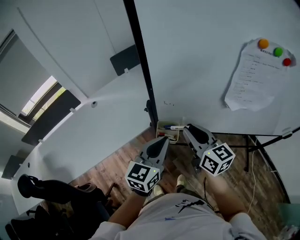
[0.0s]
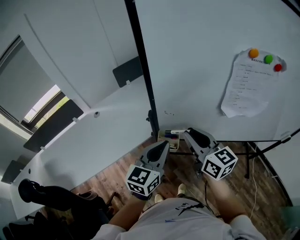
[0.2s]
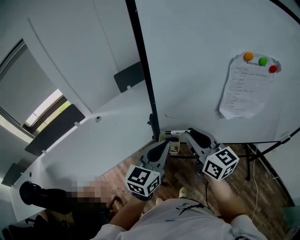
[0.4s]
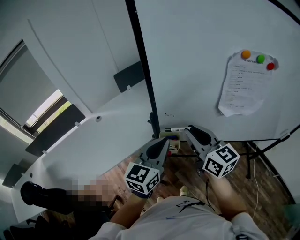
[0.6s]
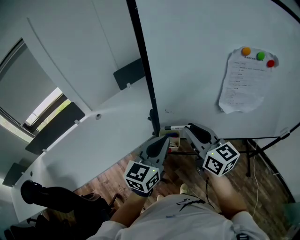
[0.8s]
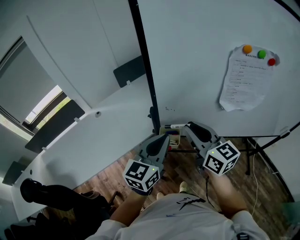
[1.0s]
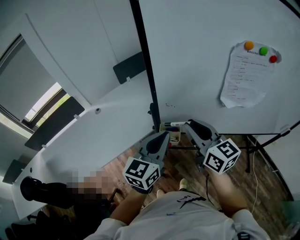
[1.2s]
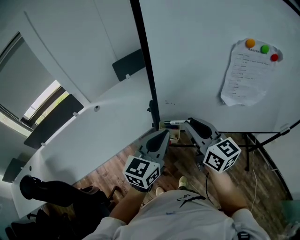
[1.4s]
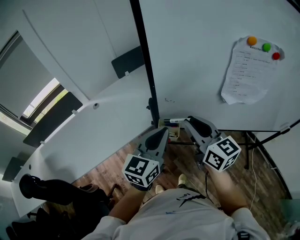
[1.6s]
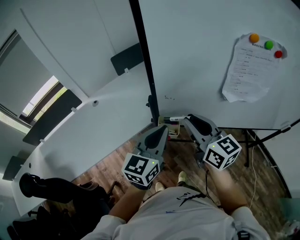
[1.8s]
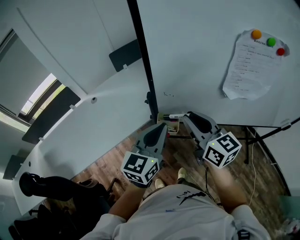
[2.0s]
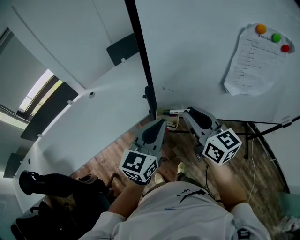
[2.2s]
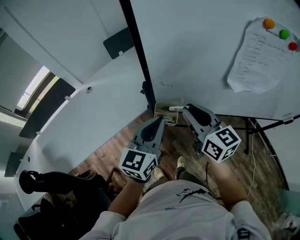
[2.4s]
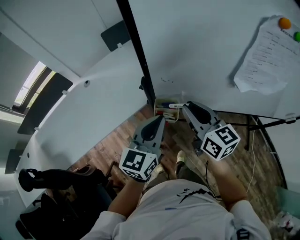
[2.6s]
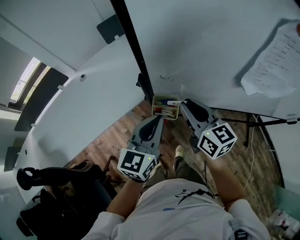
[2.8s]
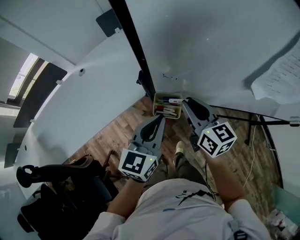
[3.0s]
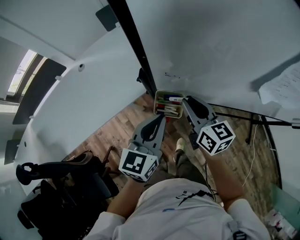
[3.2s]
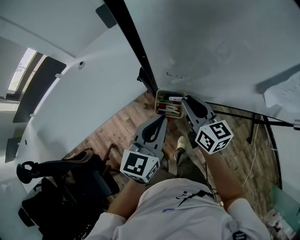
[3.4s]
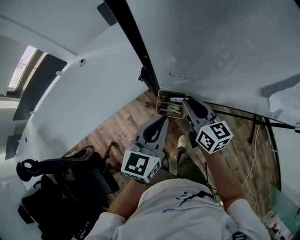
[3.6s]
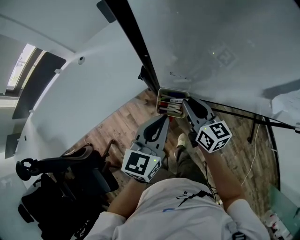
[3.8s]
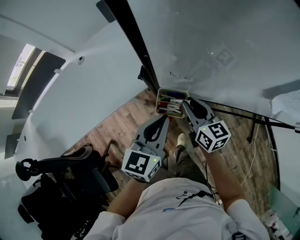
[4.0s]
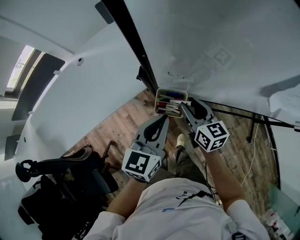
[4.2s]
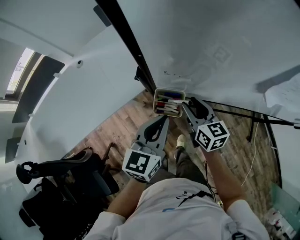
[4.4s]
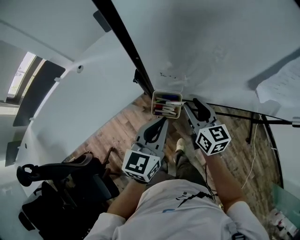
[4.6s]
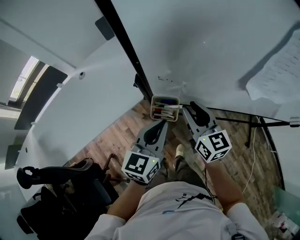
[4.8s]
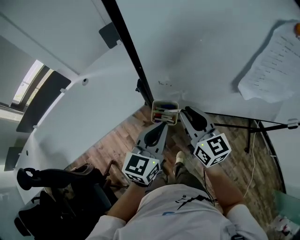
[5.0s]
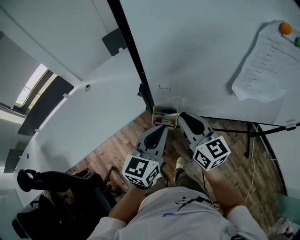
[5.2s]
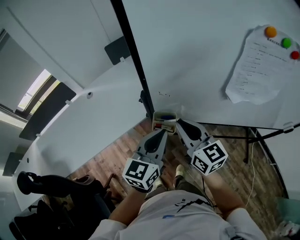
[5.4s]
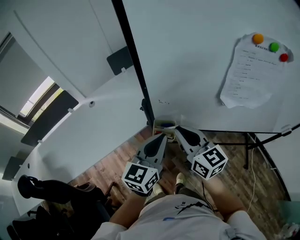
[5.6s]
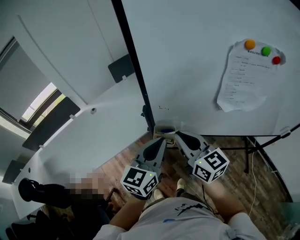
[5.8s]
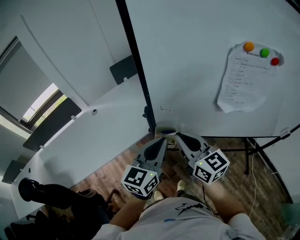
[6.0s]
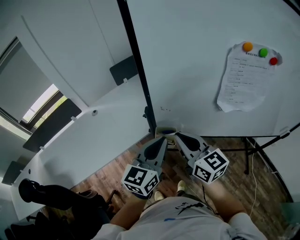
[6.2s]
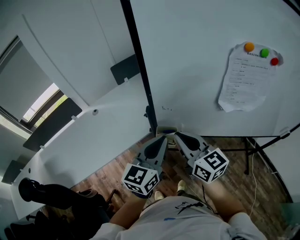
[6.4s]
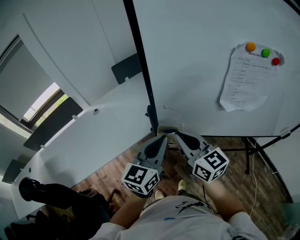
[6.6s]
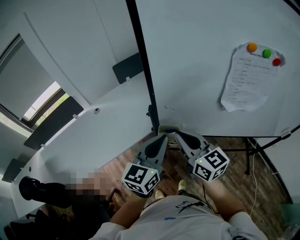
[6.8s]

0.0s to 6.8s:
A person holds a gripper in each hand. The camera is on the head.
0.0s to 1.4s: Both grippers travel together upward, some 5 cm.
1.4s to 2.8s: The right gripper is displaced downward and forward by some 15 cm; the left gripper goes roughly 10 cm downward.
2.8s to 4.0s: The left gripper is displaced downward by some 5 cm, while the right gripper heads downward, covering about 15 cm.
4.0s to 5.4s: The right gripper heads upward, covering approximately 20 cm, while the left gripper moves upward, roughly 10 cm.
5.4s to 6.8s: Both grippers move upward, about 5 cm.

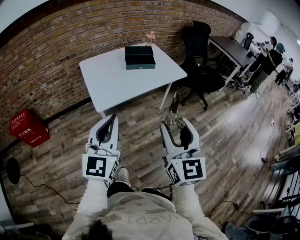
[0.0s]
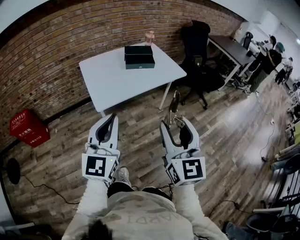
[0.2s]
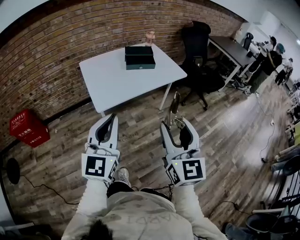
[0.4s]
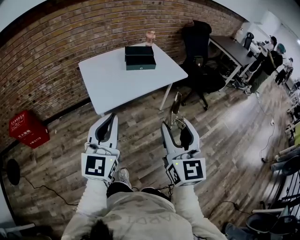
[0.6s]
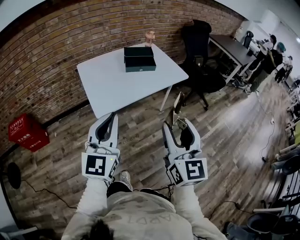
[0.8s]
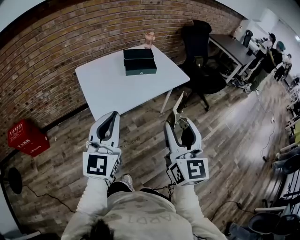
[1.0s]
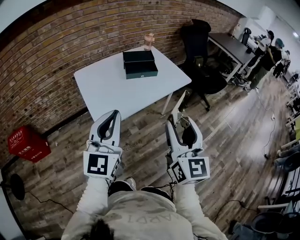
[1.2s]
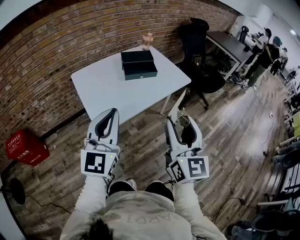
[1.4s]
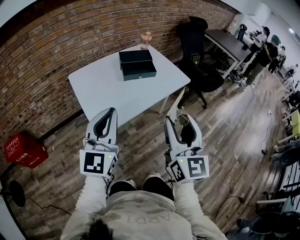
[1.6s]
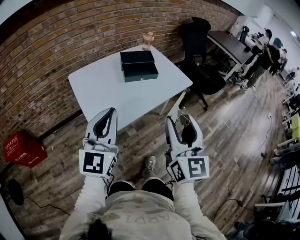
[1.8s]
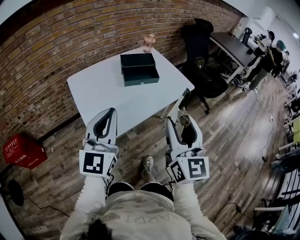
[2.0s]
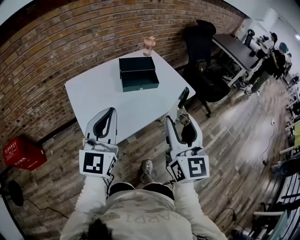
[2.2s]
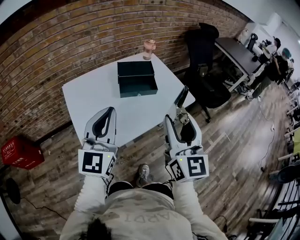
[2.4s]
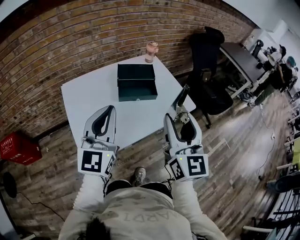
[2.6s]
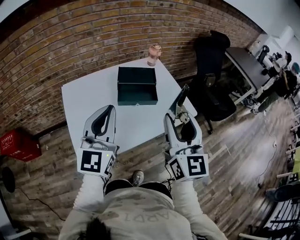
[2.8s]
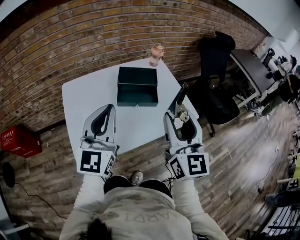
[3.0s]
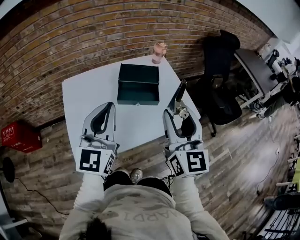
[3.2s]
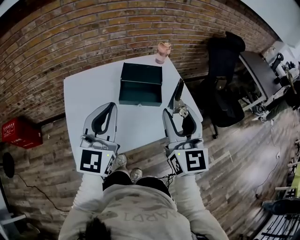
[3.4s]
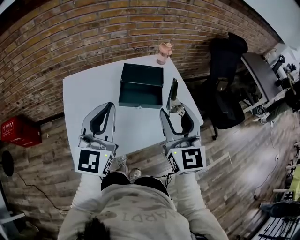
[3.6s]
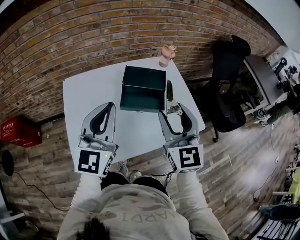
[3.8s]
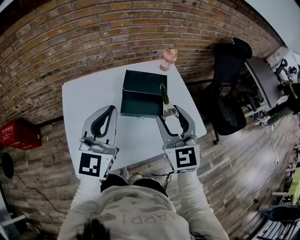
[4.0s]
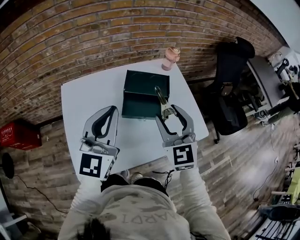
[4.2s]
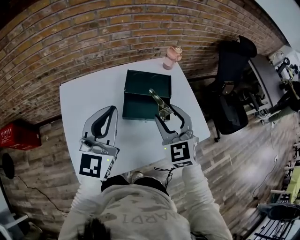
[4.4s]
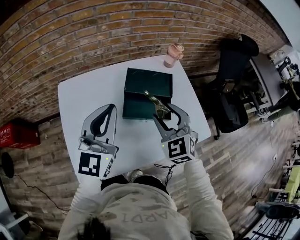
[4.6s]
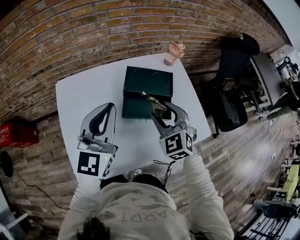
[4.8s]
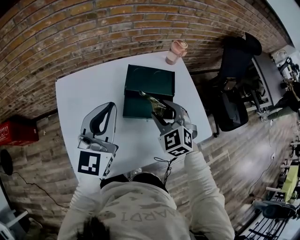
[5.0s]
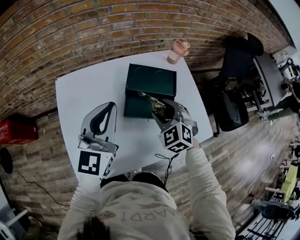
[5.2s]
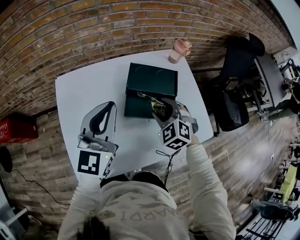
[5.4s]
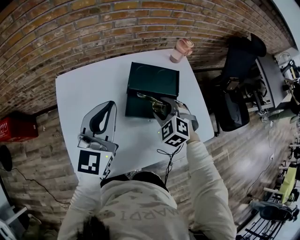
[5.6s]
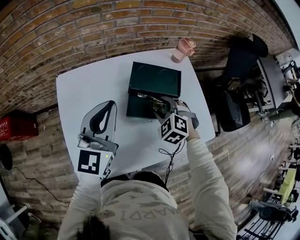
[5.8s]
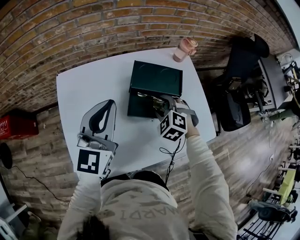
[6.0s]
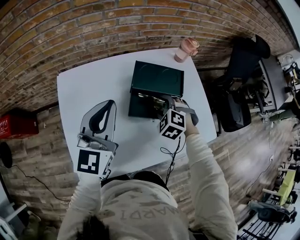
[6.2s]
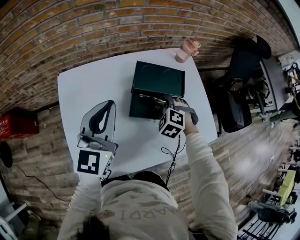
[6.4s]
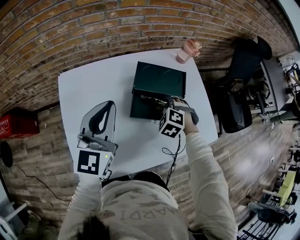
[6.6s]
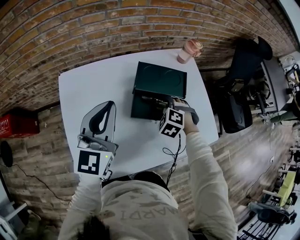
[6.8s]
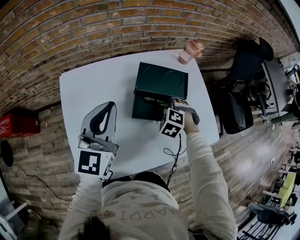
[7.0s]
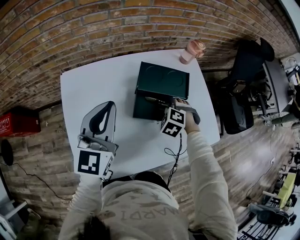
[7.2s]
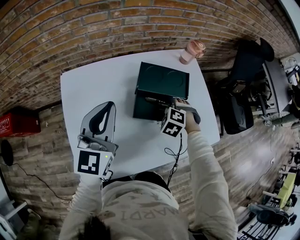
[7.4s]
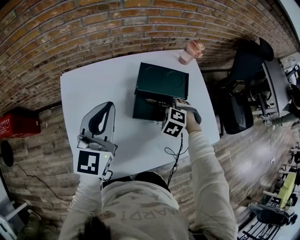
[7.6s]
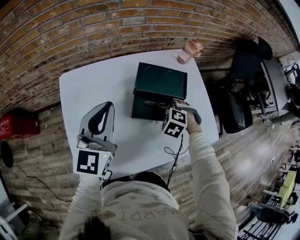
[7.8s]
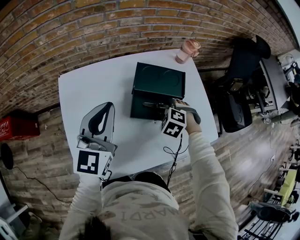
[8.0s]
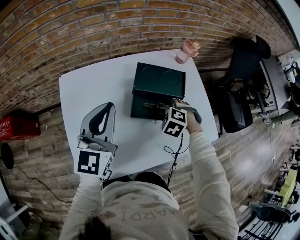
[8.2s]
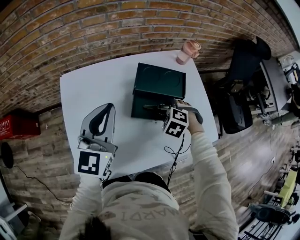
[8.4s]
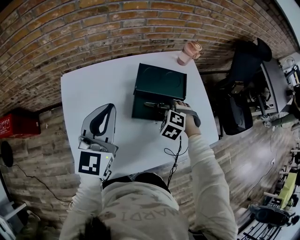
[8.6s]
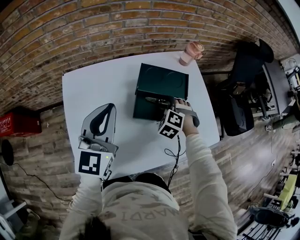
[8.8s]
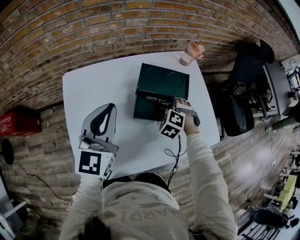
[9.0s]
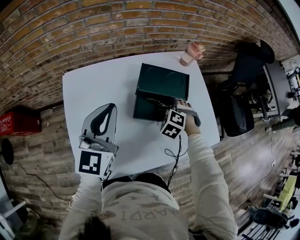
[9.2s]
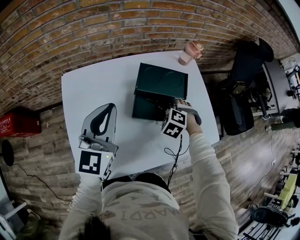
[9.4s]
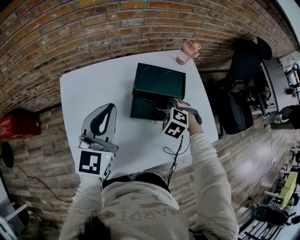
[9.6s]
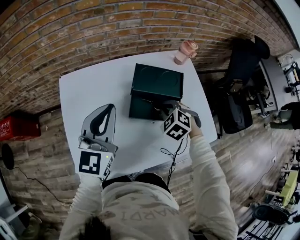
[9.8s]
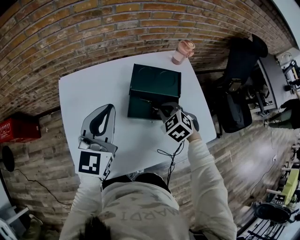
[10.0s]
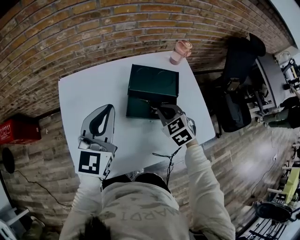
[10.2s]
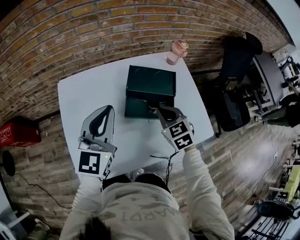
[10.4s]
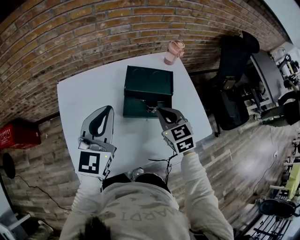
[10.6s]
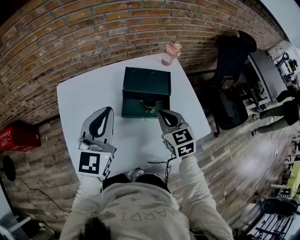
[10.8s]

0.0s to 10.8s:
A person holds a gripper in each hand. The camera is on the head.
0.0s to 1.6s: The two grippers go approximately 20 cm forward.
1.6s to 3.0s: The grippers both shift forward by roughly 30 cm.
3.0s to 4.6s: The left gripper is displaced forward by roughly 15 cm; the right gripper goes approximately 25 cm forward and downward, and tilts its fingers about 30 degrees downward.
4.6s to 6.2s: The right gripper moves downward and forward, roughly 20 cm, and points its fingers approximately 30 degrees further downward, while the left gripper changes place by approximately 5 cm.
6.2s to 9.2s: The grippers stay close to where they were, moving slightly.
9.2s to 10.8s: The left gripper ends up some 5 cm from where it was. The right gripper heads upward and backward, covering approximately 15 cm, angles its fingers upward, by some 40 degrees, and closes its fingers.

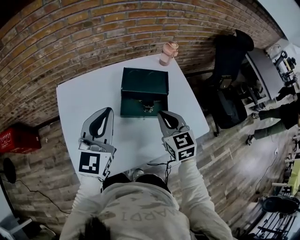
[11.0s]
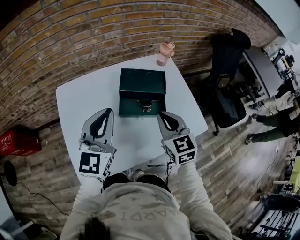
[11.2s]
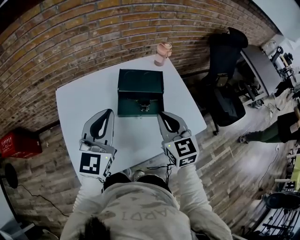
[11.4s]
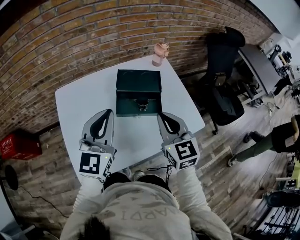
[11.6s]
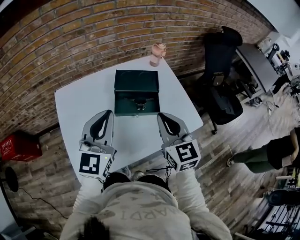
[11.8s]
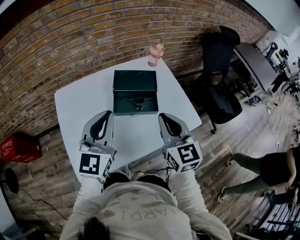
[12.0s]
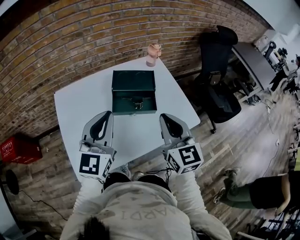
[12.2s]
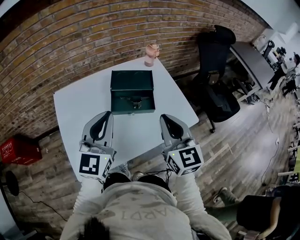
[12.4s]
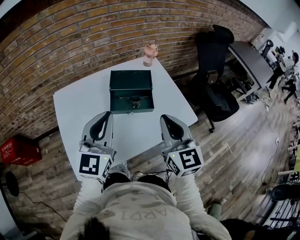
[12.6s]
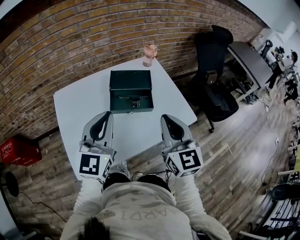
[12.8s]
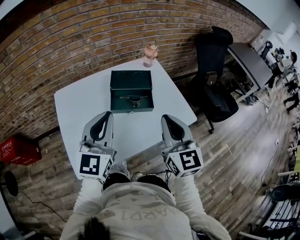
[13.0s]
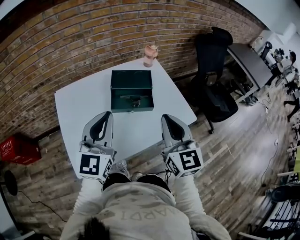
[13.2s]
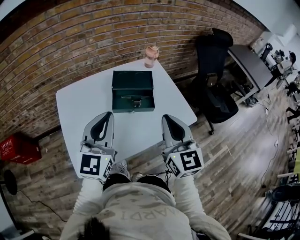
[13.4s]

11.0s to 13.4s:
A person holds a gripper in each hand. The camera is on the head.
11.0s to 12.2s: The left gripper shifts about 5 cm backward. Meanwhile the right gripper goes roughly 15 cm upward and backward.
12.2s to 13.4s: The right gripper travels backward by some 5 cm.

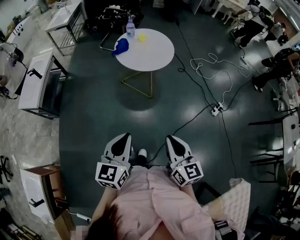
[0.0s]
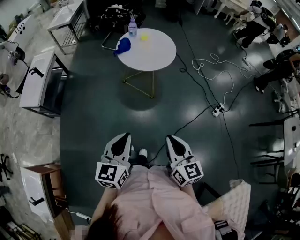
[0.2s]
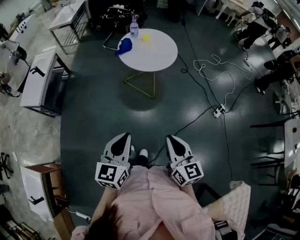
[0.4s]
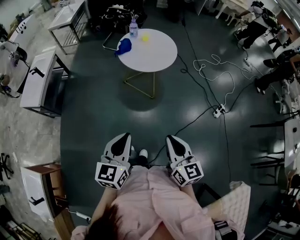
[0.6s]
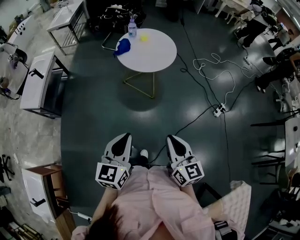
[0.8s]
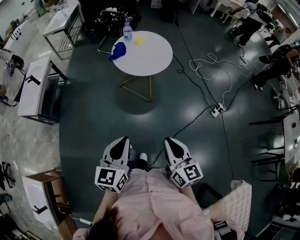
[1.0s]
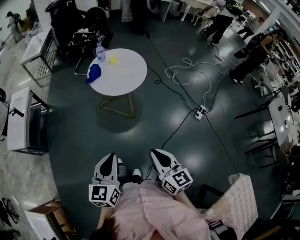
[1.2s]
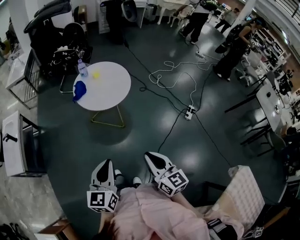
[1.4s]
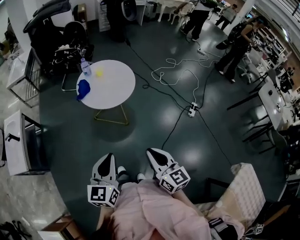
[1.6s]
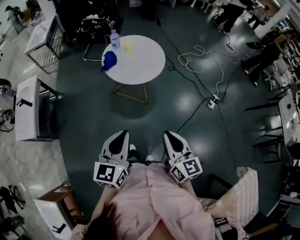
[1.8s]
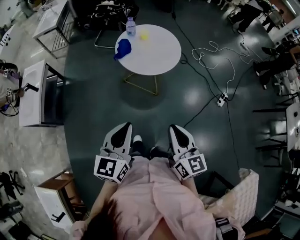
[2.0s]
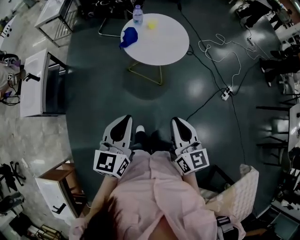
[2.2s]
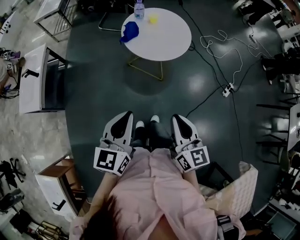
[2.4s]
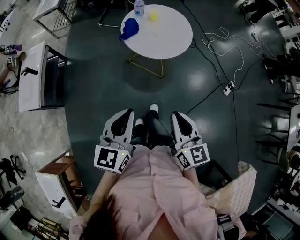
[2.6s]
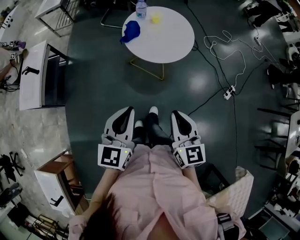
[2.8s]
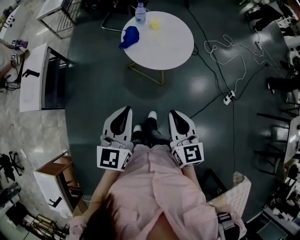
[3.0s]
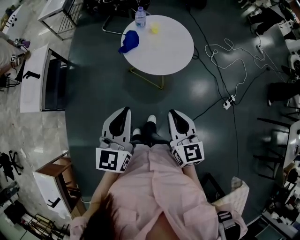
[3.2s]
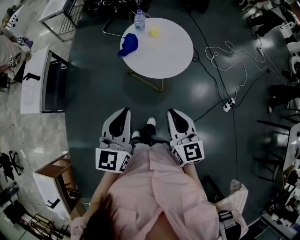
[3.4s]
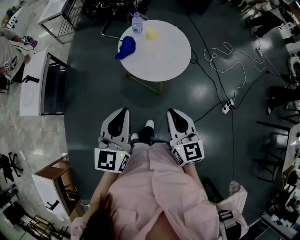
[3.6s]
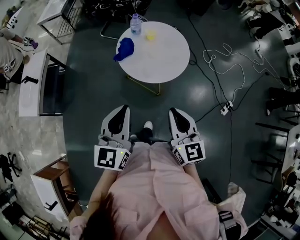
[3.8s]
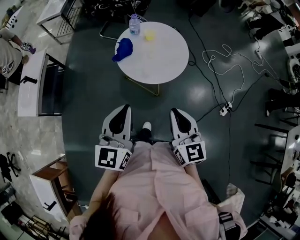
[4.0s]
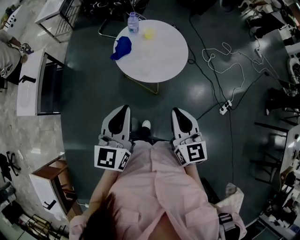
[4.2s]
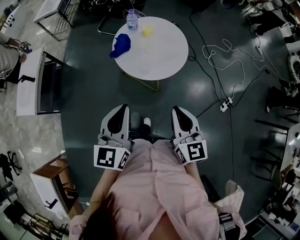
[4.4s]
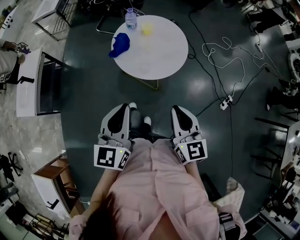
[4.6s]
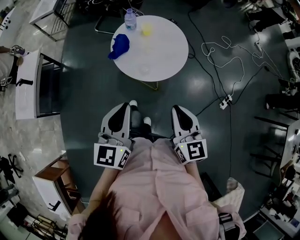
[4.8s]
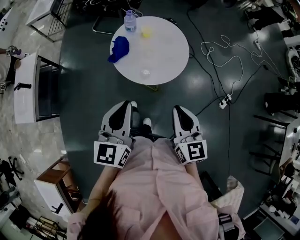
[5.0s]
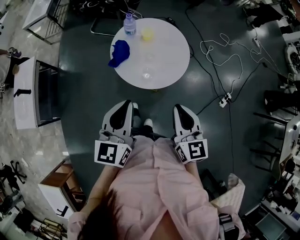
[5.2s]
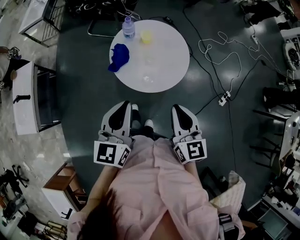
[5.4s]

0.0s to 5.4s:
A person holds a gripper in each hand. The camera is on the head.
0.0s to 1.4s: The two grippers go some 10 cm forward.
1.4s to 2.8s: Both grippers travel together to the left and forward, some 15 cm.
2.8s to 4.0s: The two grippers go roughly 10 cm forward and to the right.
4.0s to 5.4s: Both grippers move forward, approximately 10 cm.
